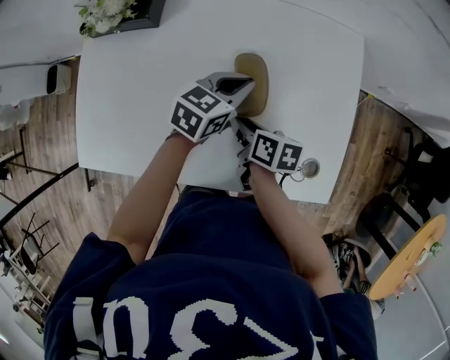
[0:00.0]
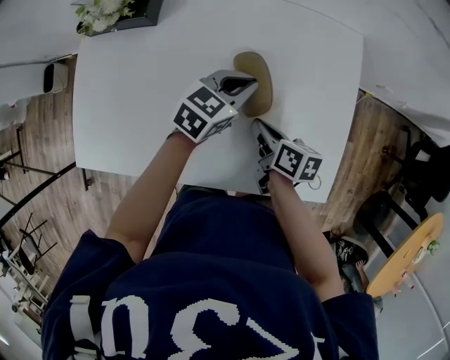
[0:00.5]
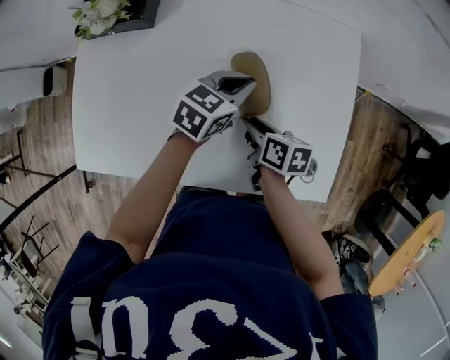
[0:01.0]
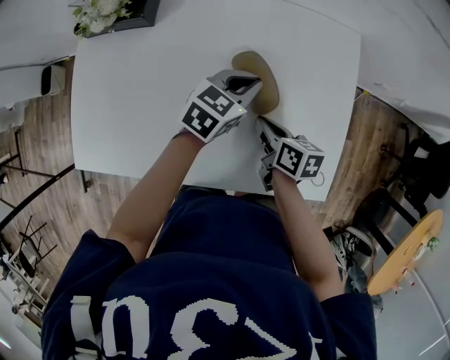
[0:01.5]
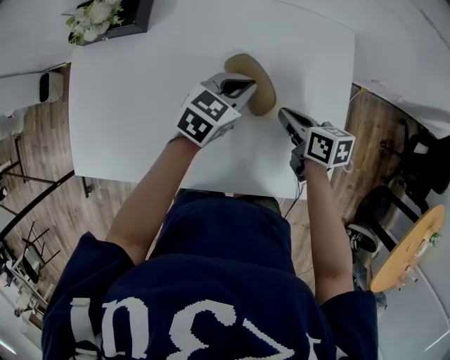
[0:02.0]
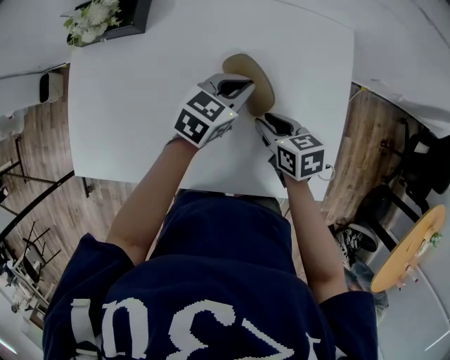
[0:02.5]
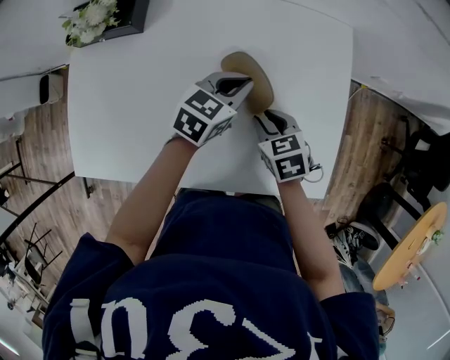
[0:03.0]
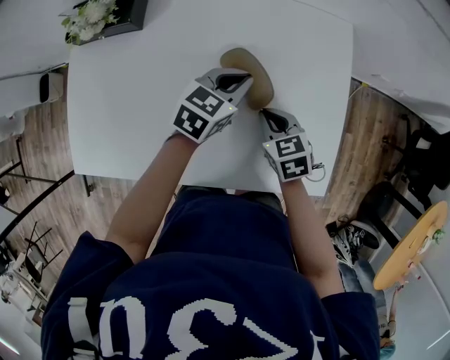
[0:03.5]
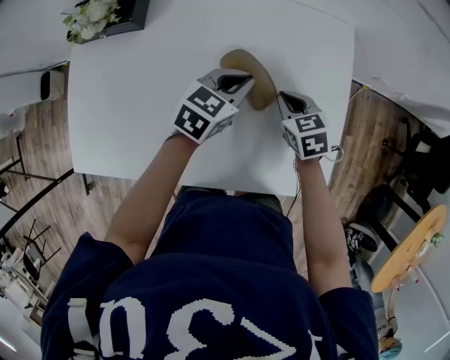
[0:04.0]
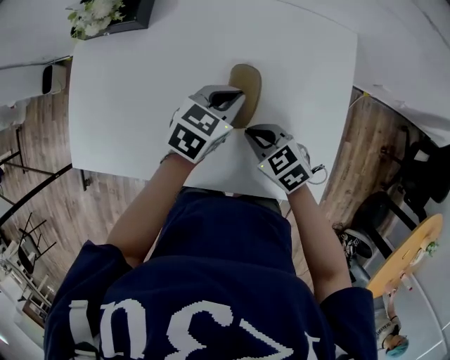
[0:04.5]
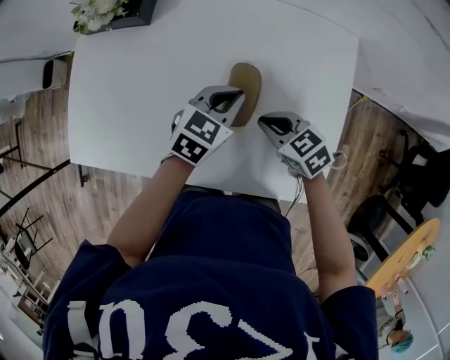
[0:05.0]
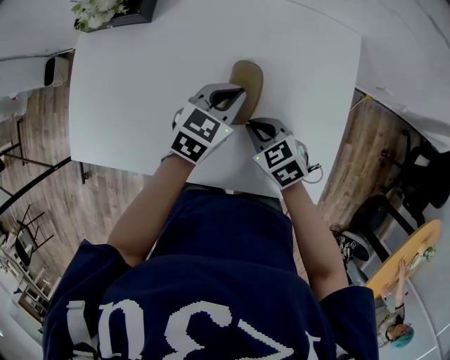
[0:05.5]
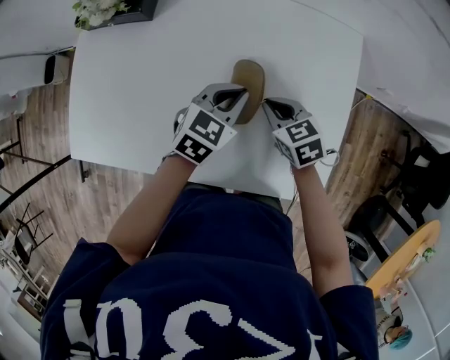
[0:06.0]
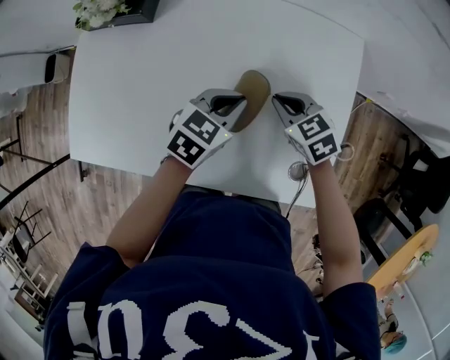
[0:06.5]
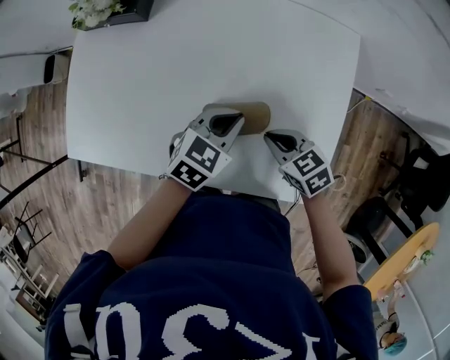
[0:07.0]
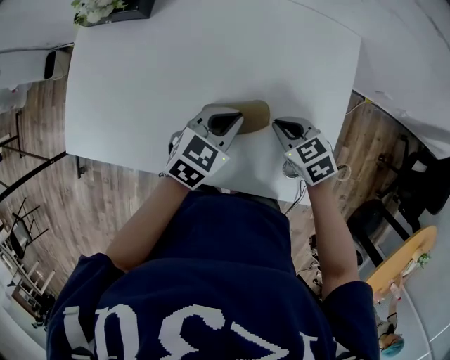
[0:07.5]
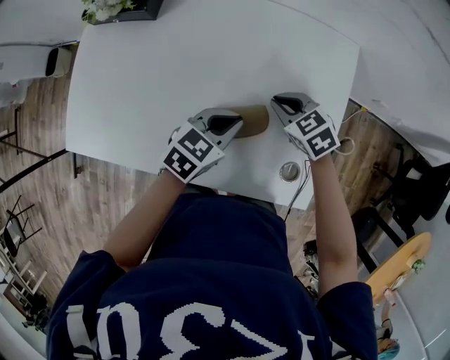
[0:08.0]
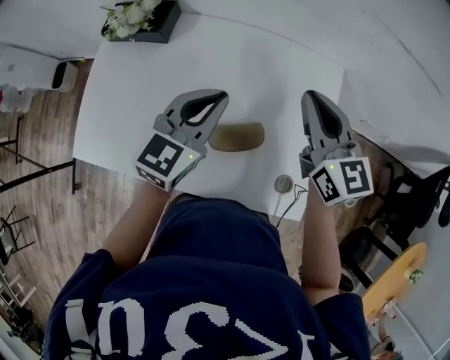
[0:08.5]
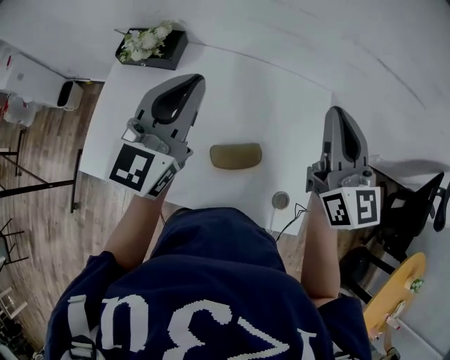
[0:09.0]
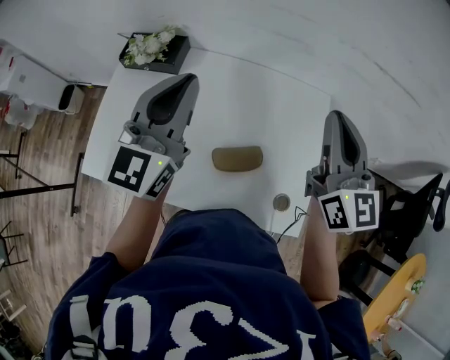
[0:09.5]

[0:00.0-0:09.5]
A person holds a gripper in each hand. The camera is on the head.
0:00.0 to 0:02.0: The right gripper travels to the right by some 15 cm.
0:02.0 to 0:04.0: The right gripper swivels some 40 degrees, and opens, then closes again.
0:04.0 to 0:05.5: The right gripper travels to the left and backward by approximately 10 cm, and rotates about 20 degrees.
0:05.5 to 0:07.5: The left gripper goes about 5 cm backward. Meanwhile the right gripper heads to the right, covering about 10 cm, and travels forward and back again, about 10 cm each way.
0:07.5 to 0:09.5: The left gripper moves upward and to the left, some 35 cm, and tilts its fingers approximately 50 degrees upward. The right gripper moves upward, approximately 40 cm, and tilts its fingers approximately 60 degrees upward.

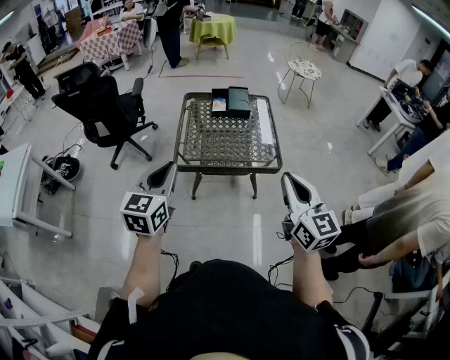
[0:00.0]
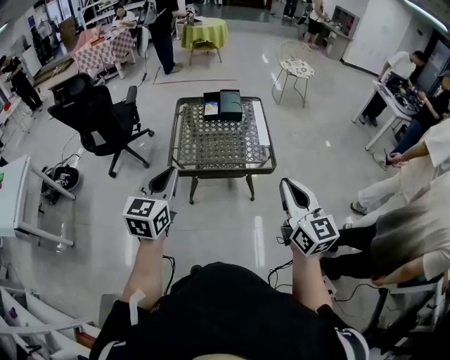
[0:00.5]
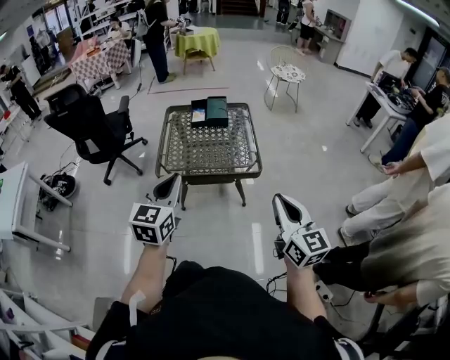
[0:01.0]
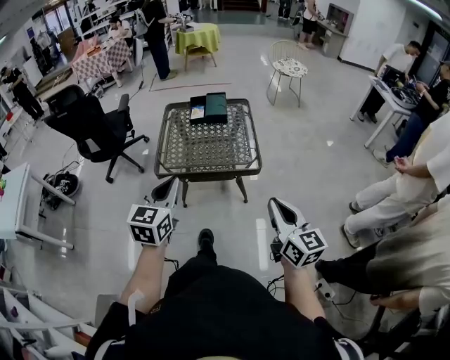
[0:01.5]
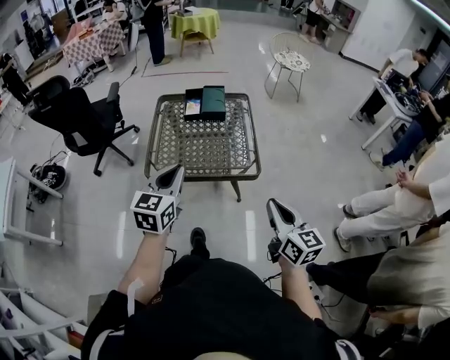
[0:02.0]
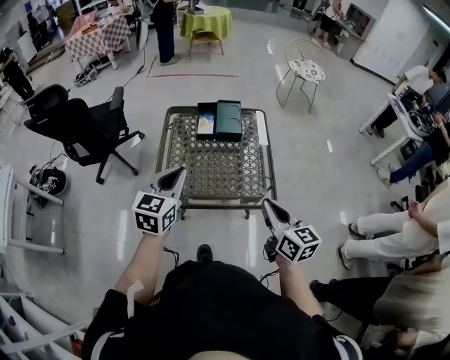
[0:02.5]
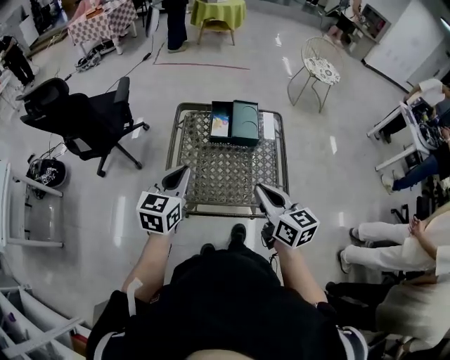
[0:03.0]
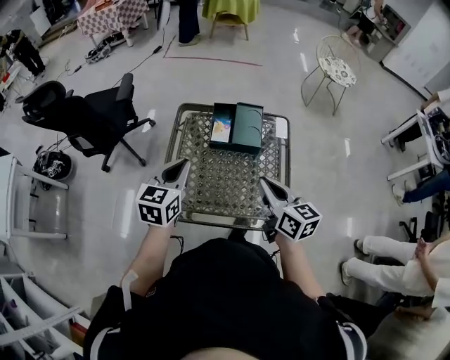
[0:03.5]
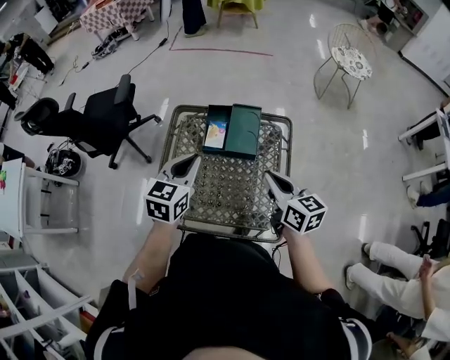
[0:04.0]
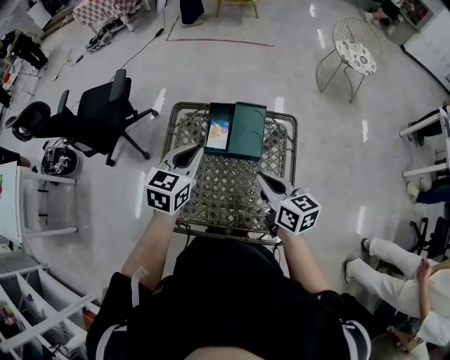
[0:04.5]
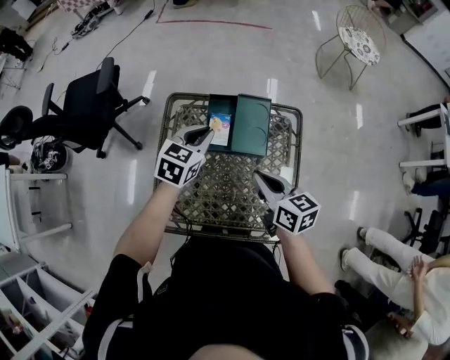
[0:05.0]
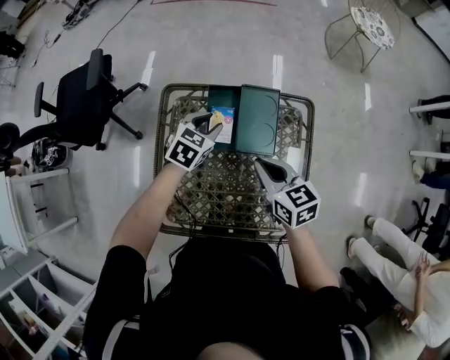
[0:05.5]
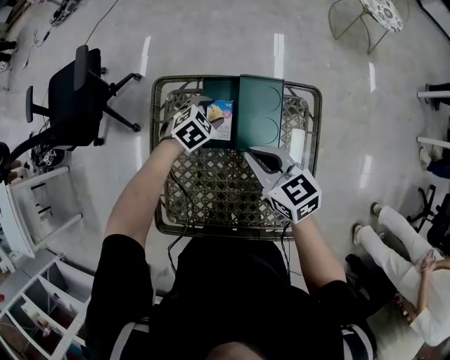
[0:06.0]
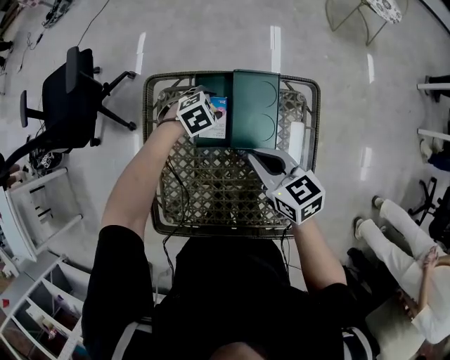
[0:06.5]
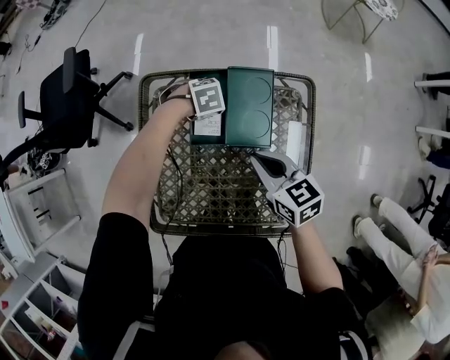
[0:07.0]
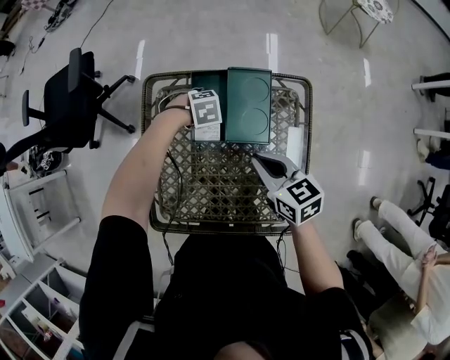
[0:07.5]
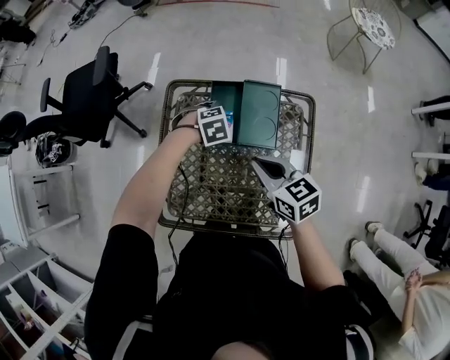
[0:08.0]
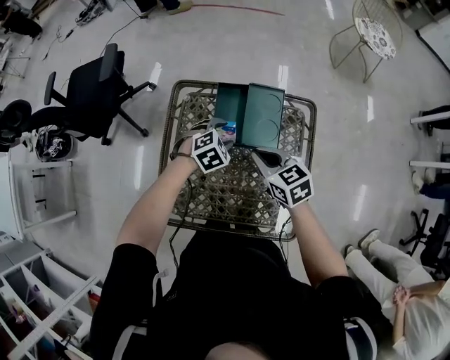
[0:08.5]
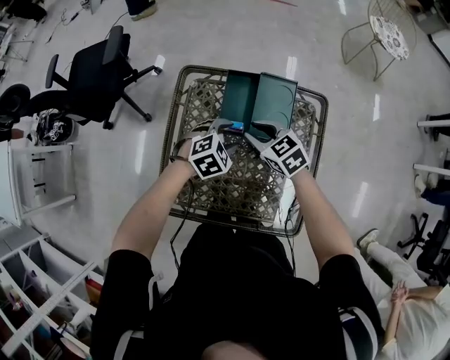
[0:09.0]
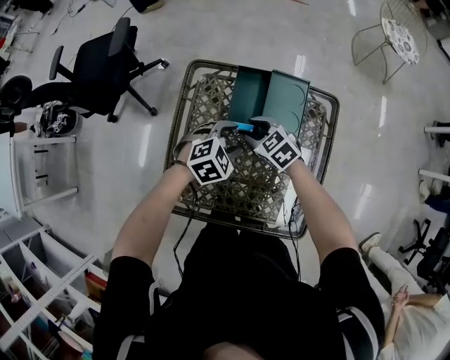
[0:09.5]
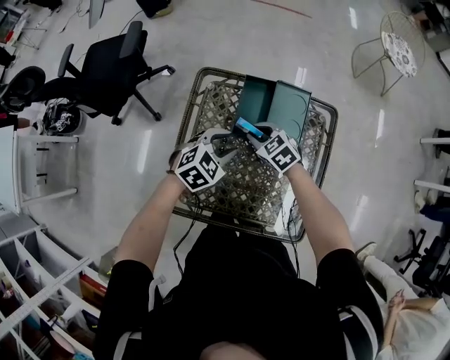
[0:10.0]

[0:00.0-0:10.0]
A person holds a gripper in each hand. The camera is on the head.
0:00.0 to 0:02.0: The left gripper is displaced to the right and forward by roughly 20 cm. The right gripper moves downward and to the right, about 15 cm.
0:02.0 to 0:04.0: The two grippers go approximately 40 cm forward. The right gripper changes its angle by approximately 20 degrees.
0:04.0 to 0:06.0: The left gripper goes approximately 35 cm downward and forward, points its fingers approximately 30 degrees further downward, and opens its fingers. Meanwhile the right gripper moves forward, to the left and downward, approximately 20 cm, and turns by roughly 20 degrees.
0:06.0 to 0:08.0: The left gripper moves approximately 5 cm, and swivels roughly 20 degrees. The right gripper changes place by approximately 5 cm.
0:08.0 to 0:10.0: The left gripper changes place by some 15 cm, and turns by some 30 degrees. The right gripper travels downward by roughly 10 cm, and turns by roughly 30 degrees.

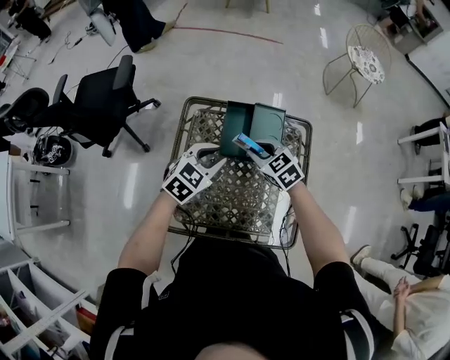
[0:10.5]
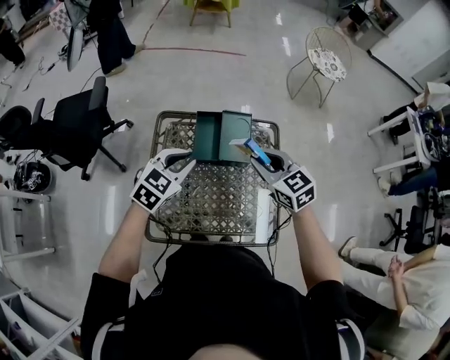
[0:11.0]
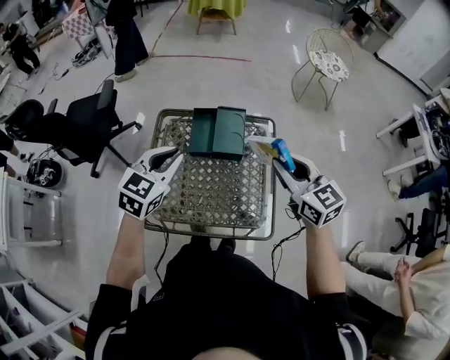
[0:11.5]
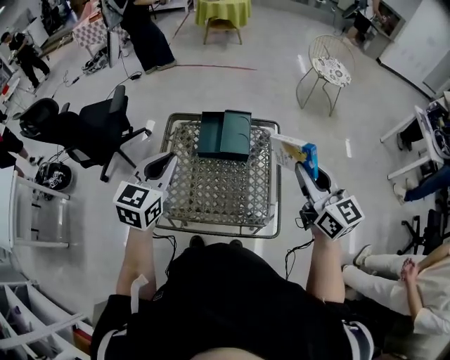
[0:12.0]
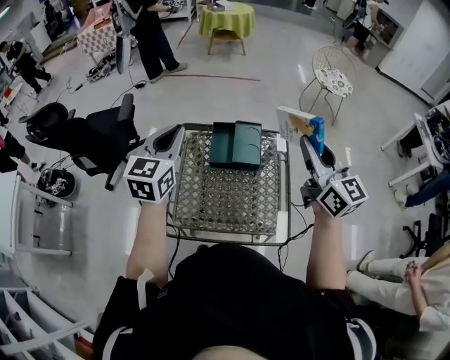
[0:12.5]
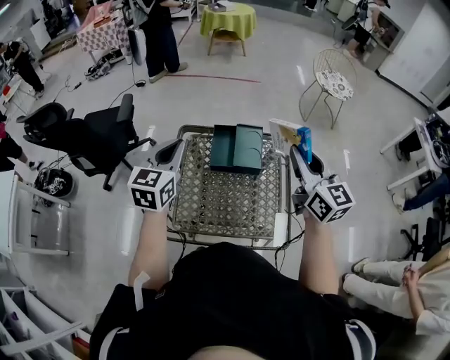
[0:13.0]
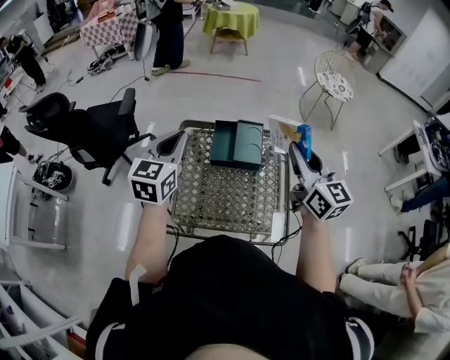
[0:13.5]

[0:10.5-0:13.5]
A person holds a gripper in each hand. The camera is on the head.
0:10.5 to 0:12.0: The left gripper is displaced upward and backward by roughly 20 cm, and rotates approximately 30 degrees. Meanwhile the right gripper goes roughly 40 cm upward, to the right and backward, and angles its fingers upward, by some 40 degrees.
0:12.0 to 0:13.5: The left gripper heads forward, covering about 5 cm. The right gripper goes roughly 10 cm to the left and forward.

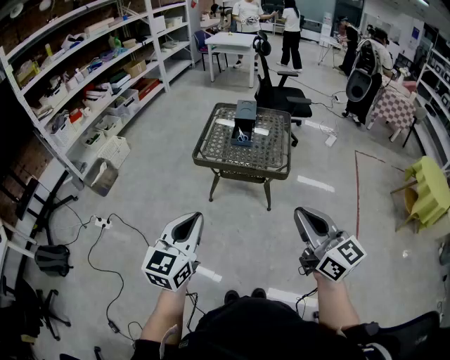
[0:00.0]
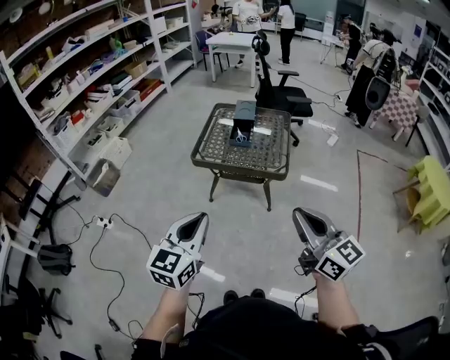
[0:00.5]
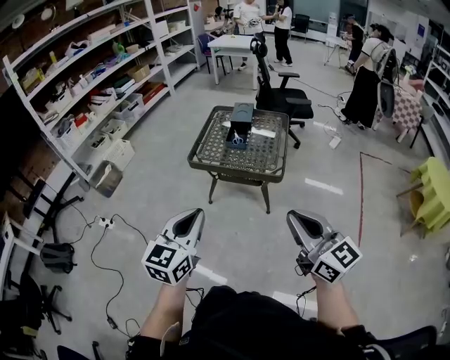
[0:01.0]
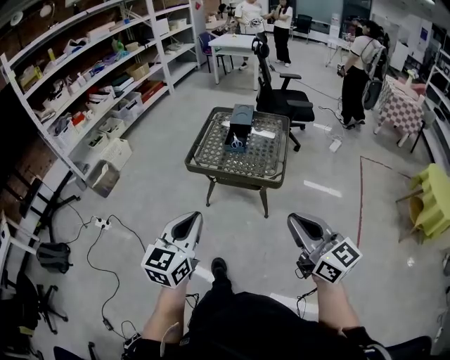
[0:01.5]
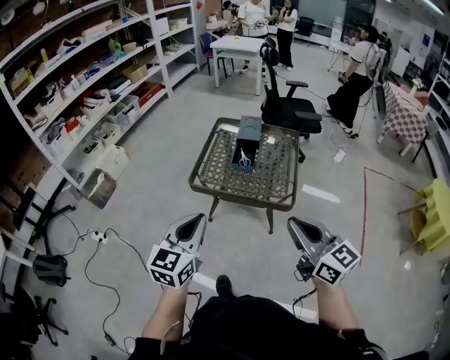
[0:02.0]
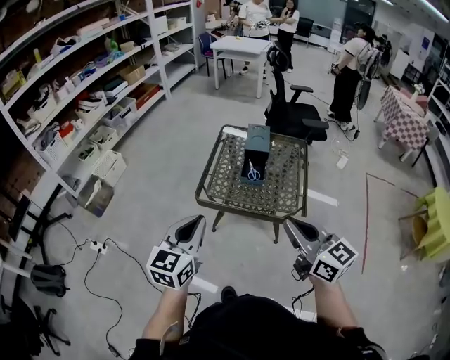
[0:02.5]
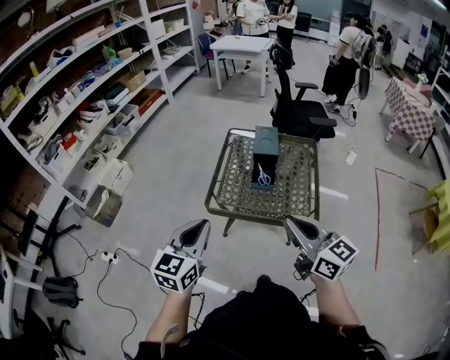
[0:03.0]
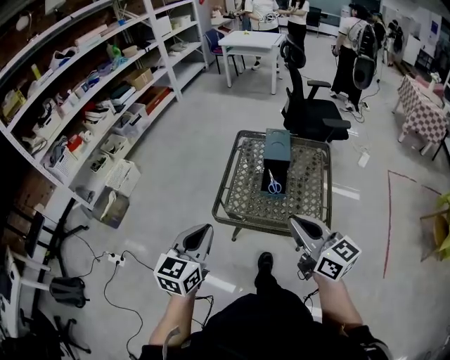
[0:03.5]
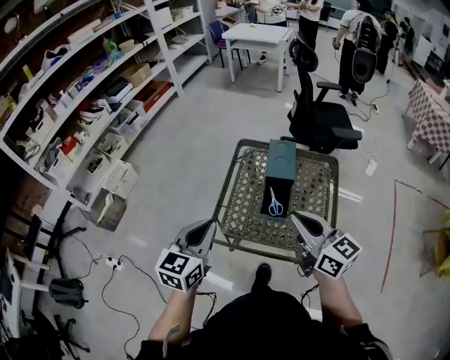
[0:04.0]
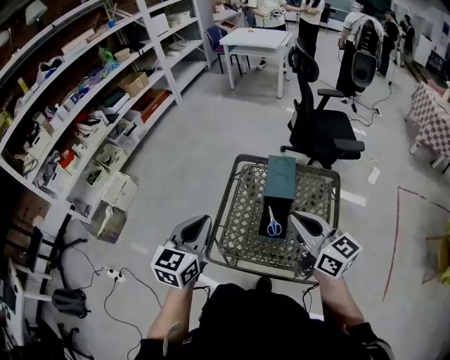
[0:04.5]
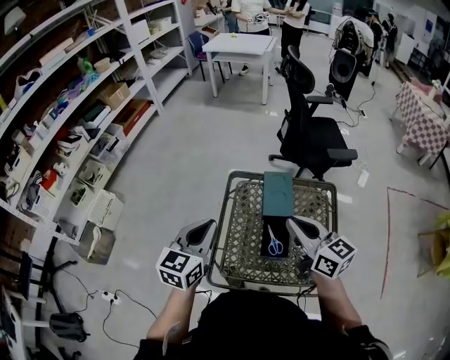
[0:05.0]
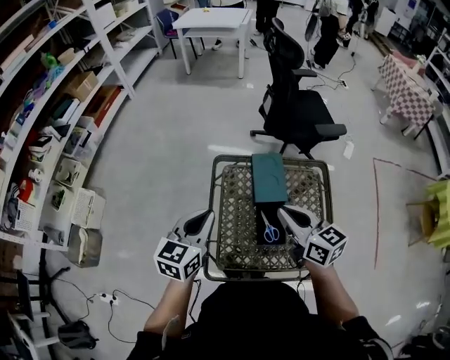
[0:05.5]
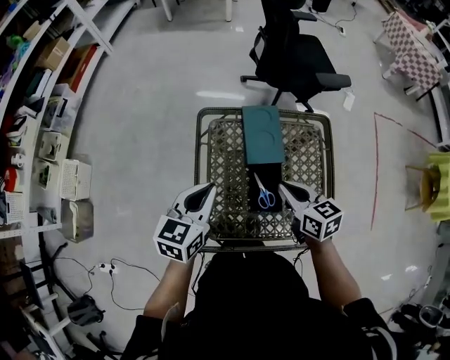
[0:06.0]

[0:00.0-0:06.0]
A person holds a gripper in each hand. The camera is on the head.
0:00.0 to 0:02.0: The two grippers go about 15 cm forward.
0:02.0 to 0:04.0: The grippers both shift forward by some 30 cm.
0:04.0 to 0:06.0: The left gripper moves forward and downward, about 25 cm, and turns by some 20 degrees; the right gripper is displaced downward and forward by approximately 25 cm, and swivels about 30 degrees.
